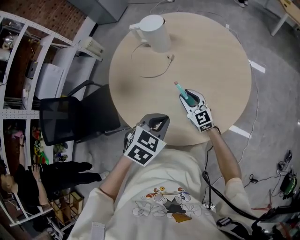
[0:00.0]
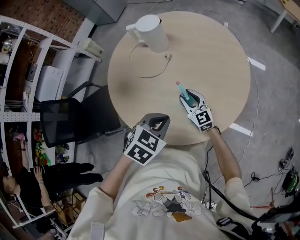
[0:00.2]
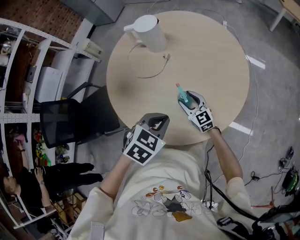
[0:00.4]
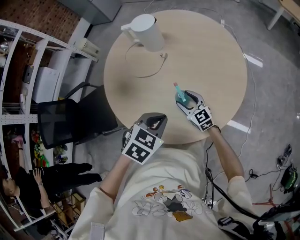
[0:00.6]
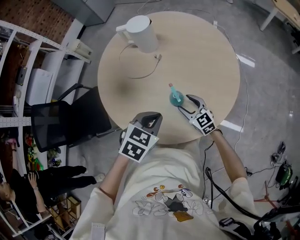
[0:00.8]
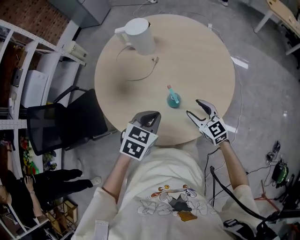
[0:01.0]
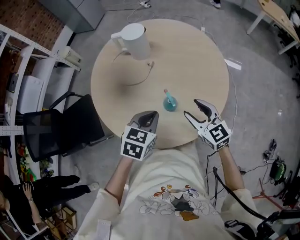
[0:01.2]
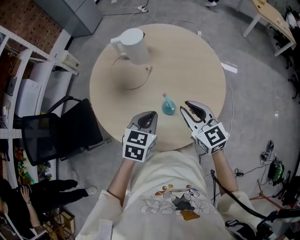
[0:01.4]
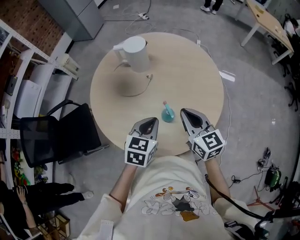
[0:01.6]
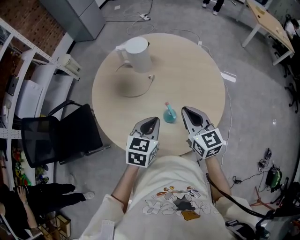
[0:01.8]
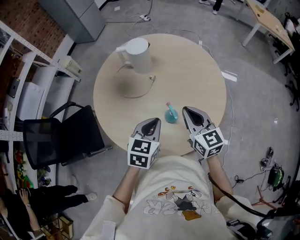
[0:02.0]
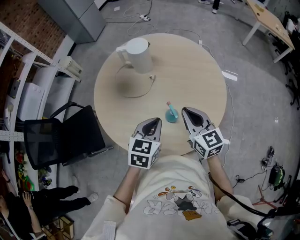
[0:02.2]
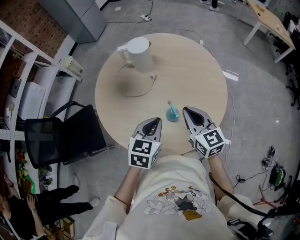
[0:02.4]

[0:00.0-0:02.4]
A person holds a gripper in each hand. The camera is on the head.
0:00.0 to 0:01.2: The right gripper goes about 15 cm upward, to the right and backward, and opens up.
0:01.2 to 0:02.4: The right gripper goes approximately 5 cm upward, and closes its fingers.

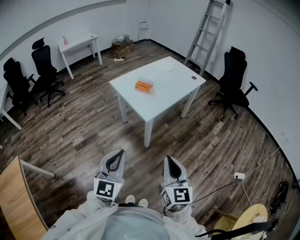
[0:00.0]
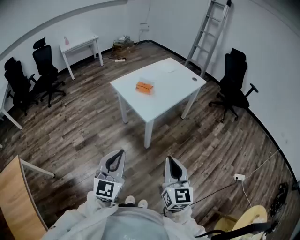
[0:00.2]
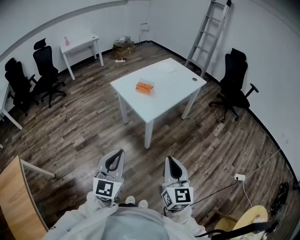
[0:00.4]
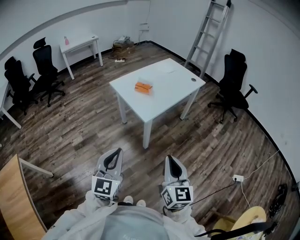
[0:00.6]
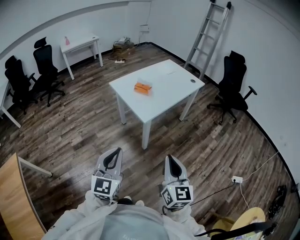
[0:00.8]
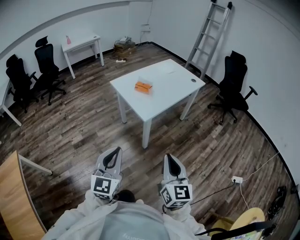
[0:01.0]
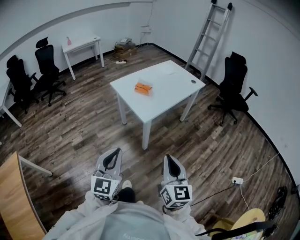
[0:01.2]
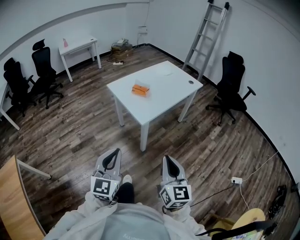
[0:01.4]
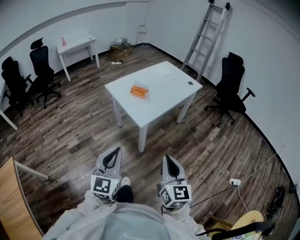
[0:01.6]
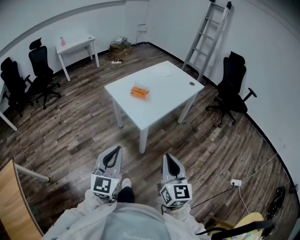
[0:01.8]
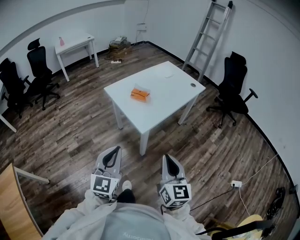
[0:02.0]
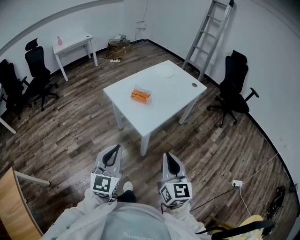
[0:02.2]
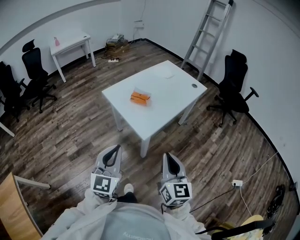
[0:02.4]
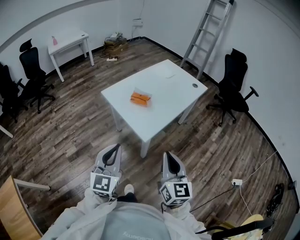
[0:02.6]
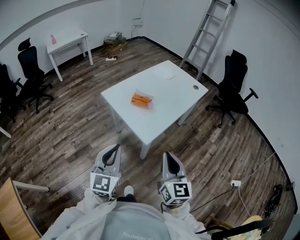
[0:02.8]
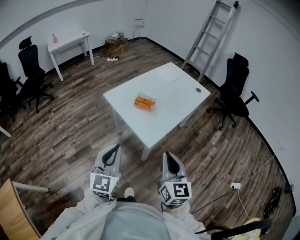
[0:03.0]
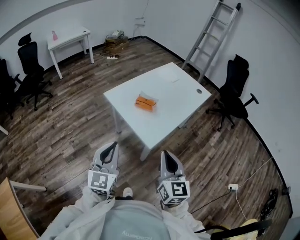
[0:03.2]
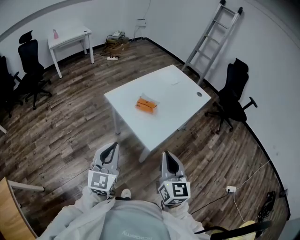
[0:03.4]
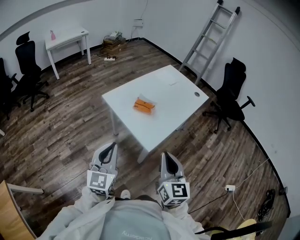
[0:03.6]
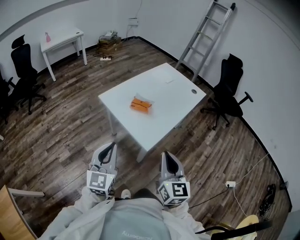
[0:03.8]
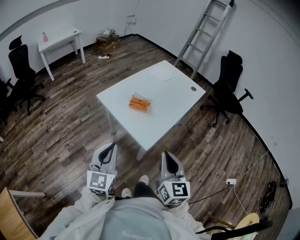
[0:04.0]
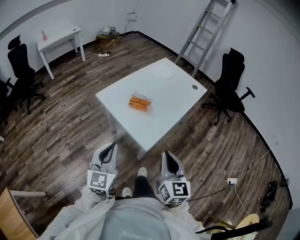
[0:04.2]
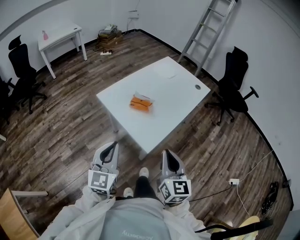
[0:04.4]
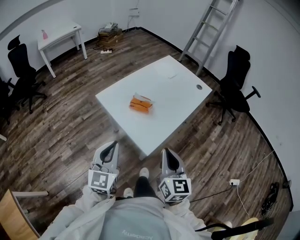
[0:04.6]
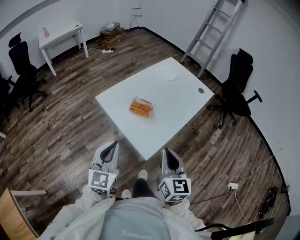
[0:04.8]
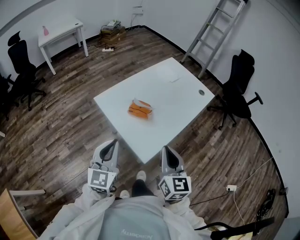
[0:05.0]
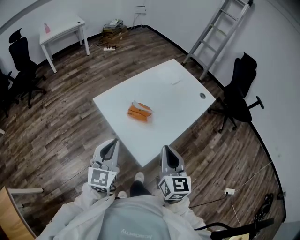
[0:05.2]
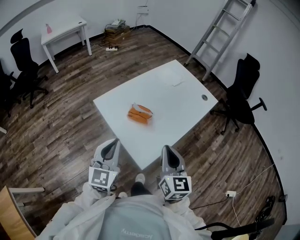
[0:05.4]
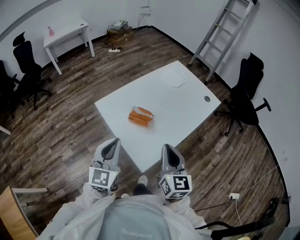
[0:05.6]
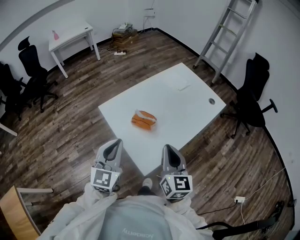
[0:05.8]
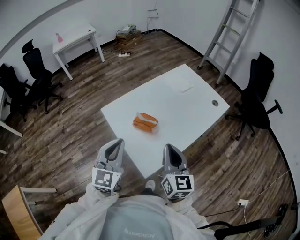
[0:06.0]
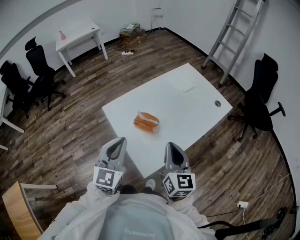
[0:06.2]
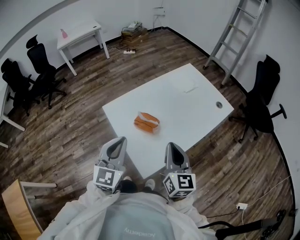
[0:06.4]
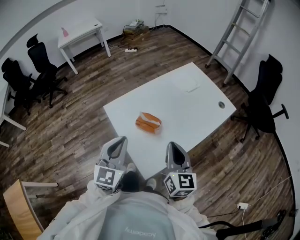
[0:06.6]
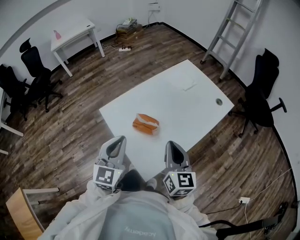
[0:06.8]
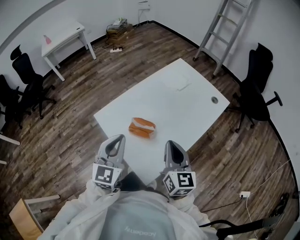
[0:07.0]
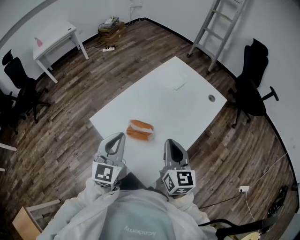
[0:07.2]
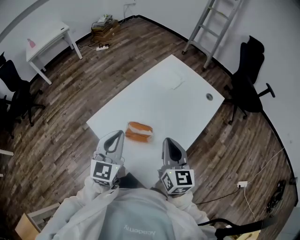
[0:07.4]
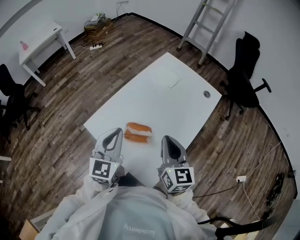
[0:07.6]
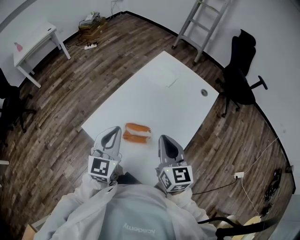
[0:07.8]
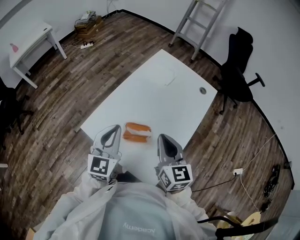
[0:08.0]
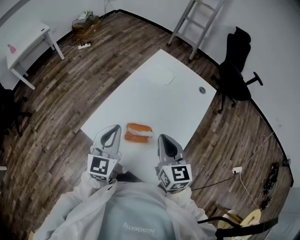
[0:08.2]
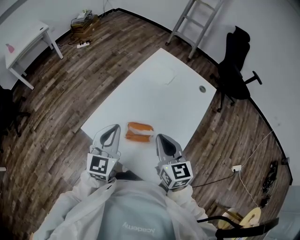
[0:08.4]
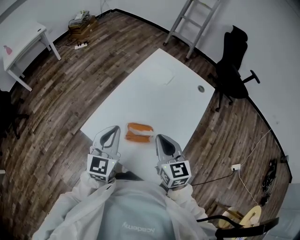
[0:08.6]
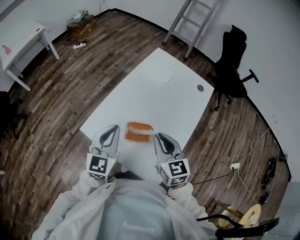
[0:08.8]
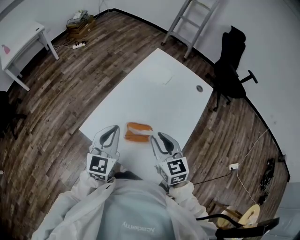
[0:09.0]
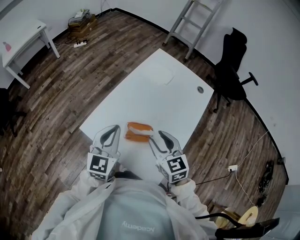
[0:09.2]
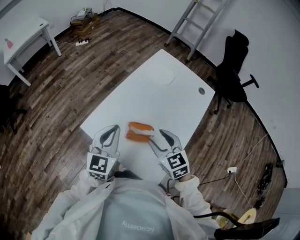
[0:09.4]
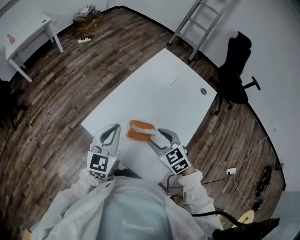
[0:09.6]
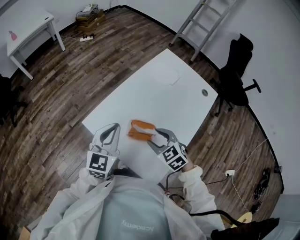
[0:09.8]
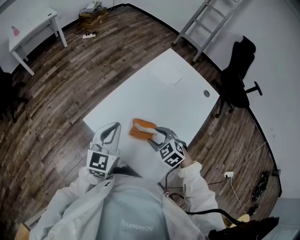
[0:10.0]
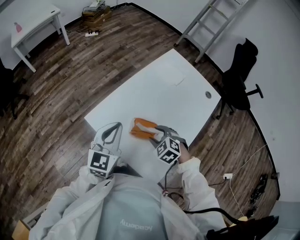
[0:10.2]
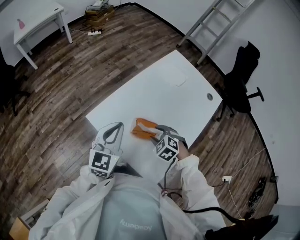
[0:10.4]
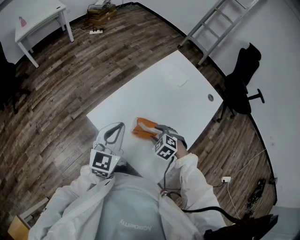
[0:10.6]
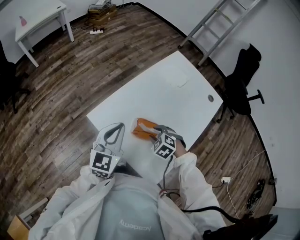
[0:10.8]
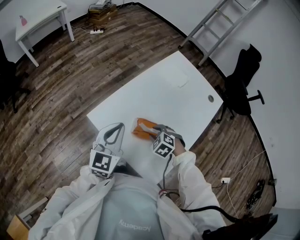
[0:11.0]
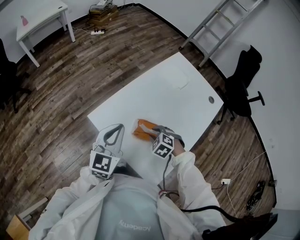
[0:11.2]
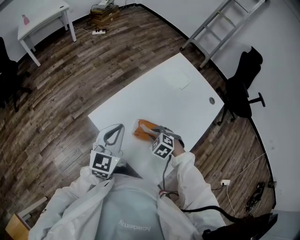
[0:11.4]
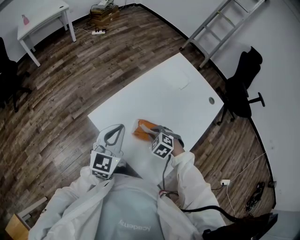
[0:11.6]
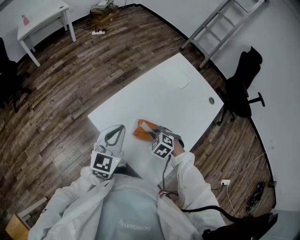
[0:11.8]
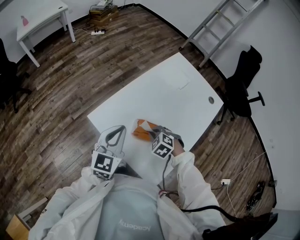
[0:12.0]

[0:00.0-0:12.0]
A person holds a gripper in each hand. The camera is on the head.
0:00.0 to 0:01.6: The grippers stay close to where they were, moving slightly.
0:01.6 to 0:03.0: Both grippers travel together forward and to the left, roughly 15 cm.
0:03.0 to 0:04.4: The grippers both shift forward by some 5 cm.
0:04.4 to 0:06.0: Both grippers travel together forward, about 15 cm.
0:06.0 to 0:07.6: The right gripper moves forward, some 10 cm, while the left gripper shifts roughly 15 cm forward.
0:07.6 to 0:09.0: The right gripper moves approximately 5 cm.
0:09.0 to 0:10.4: The right gripper heads downward, covering about 15 cm, angles its fingers downward, by about 40 degrees, and opens its fingers.
0:10.4 to 0:12.0: The right gripper closes up.

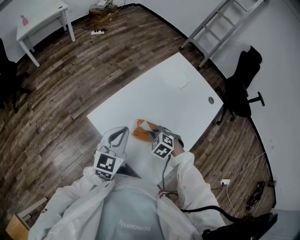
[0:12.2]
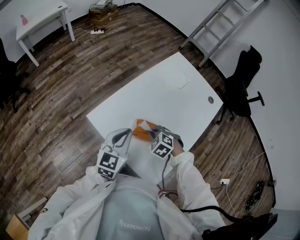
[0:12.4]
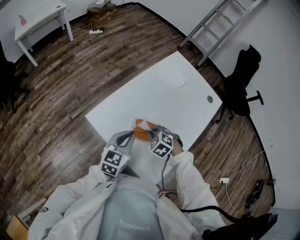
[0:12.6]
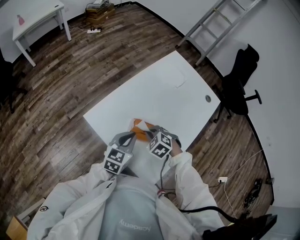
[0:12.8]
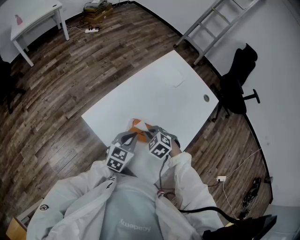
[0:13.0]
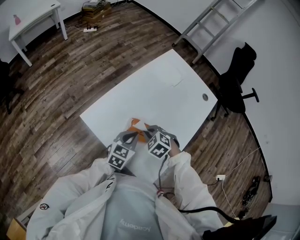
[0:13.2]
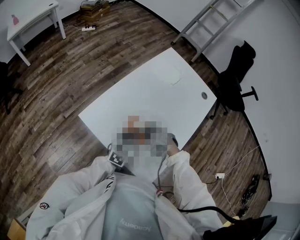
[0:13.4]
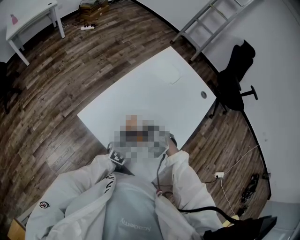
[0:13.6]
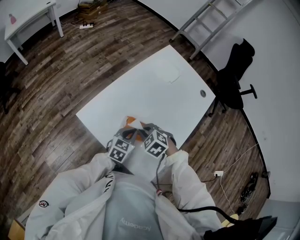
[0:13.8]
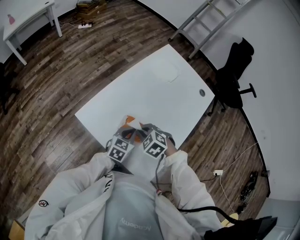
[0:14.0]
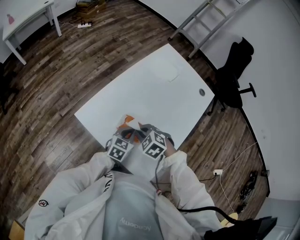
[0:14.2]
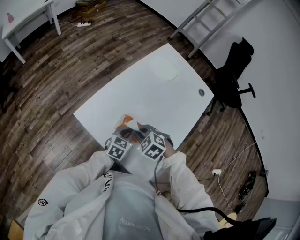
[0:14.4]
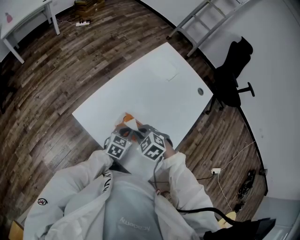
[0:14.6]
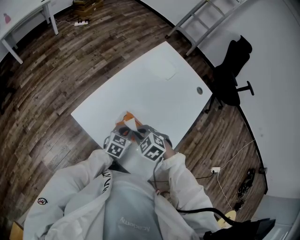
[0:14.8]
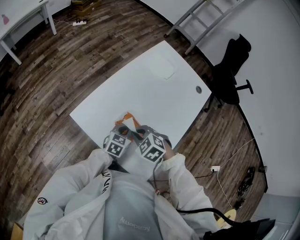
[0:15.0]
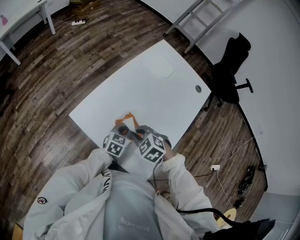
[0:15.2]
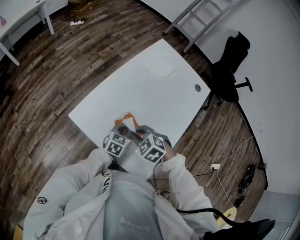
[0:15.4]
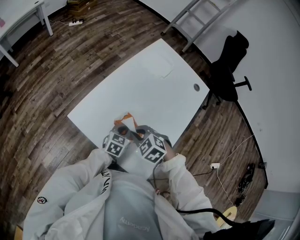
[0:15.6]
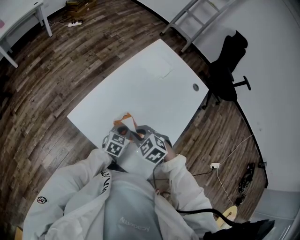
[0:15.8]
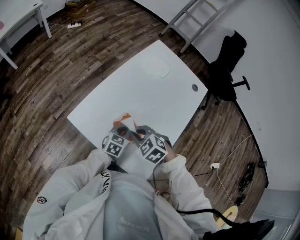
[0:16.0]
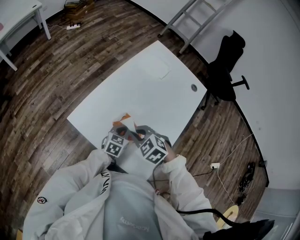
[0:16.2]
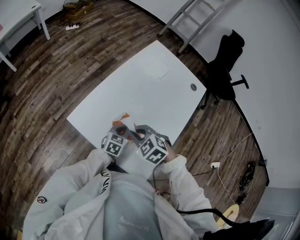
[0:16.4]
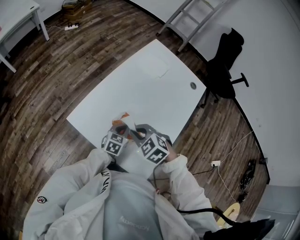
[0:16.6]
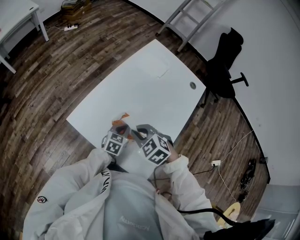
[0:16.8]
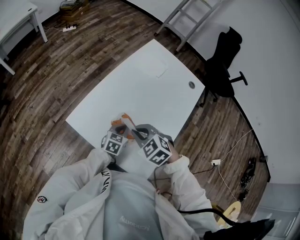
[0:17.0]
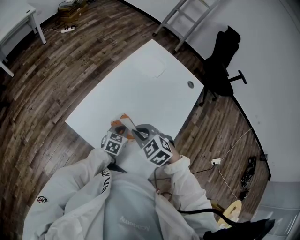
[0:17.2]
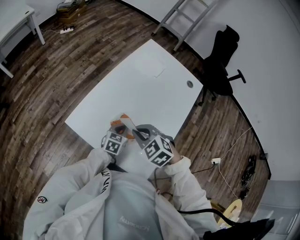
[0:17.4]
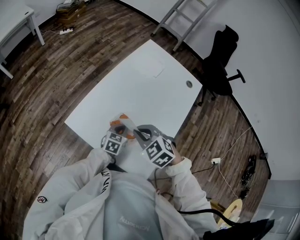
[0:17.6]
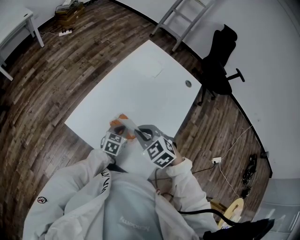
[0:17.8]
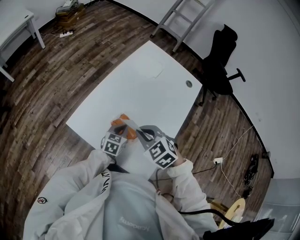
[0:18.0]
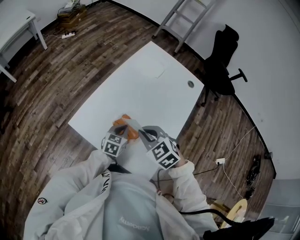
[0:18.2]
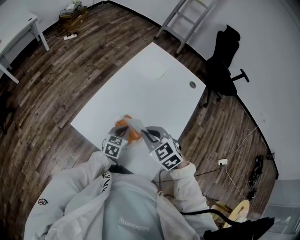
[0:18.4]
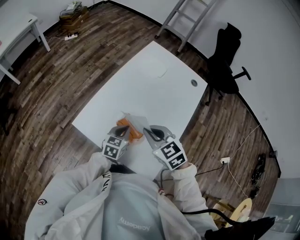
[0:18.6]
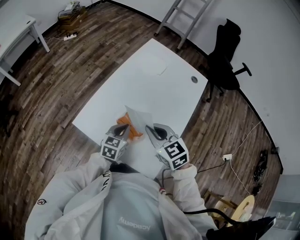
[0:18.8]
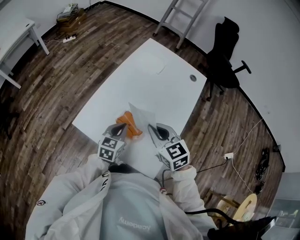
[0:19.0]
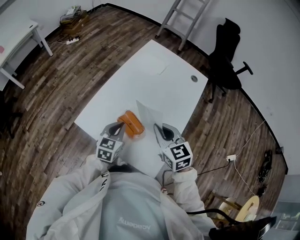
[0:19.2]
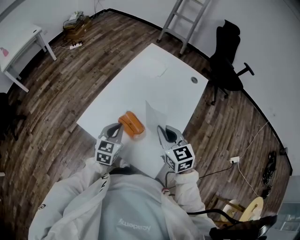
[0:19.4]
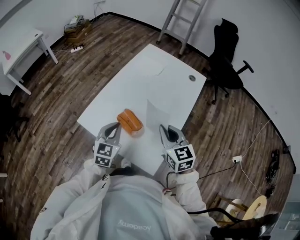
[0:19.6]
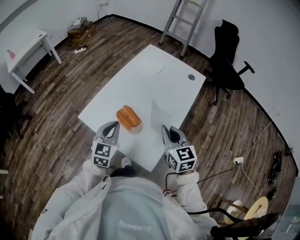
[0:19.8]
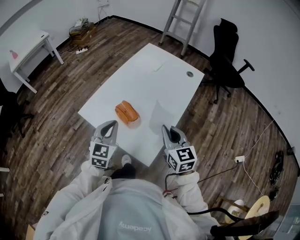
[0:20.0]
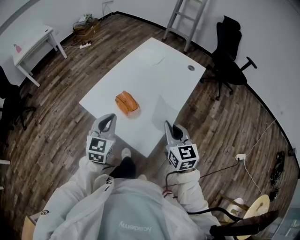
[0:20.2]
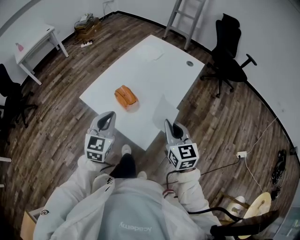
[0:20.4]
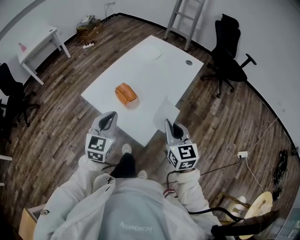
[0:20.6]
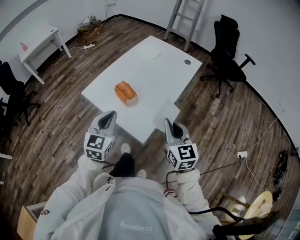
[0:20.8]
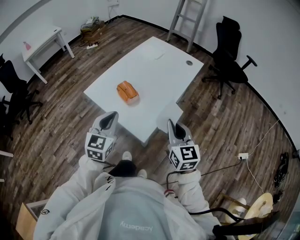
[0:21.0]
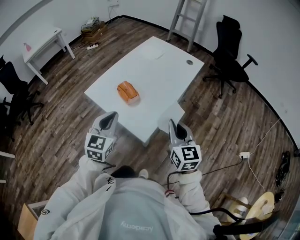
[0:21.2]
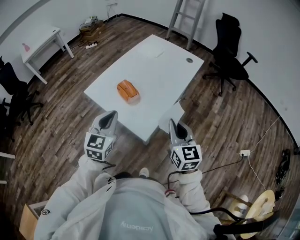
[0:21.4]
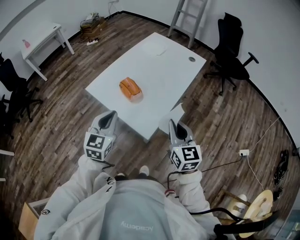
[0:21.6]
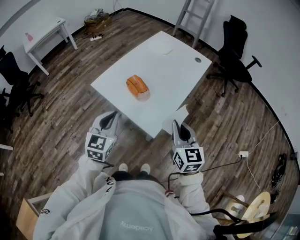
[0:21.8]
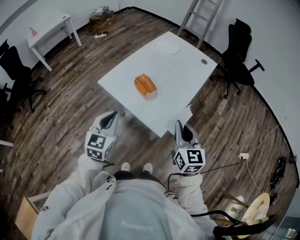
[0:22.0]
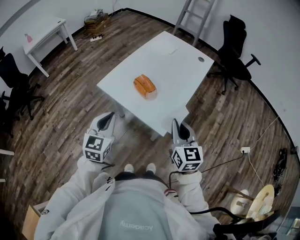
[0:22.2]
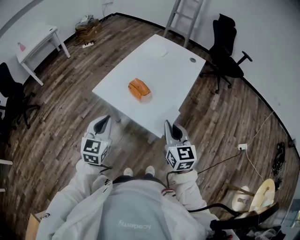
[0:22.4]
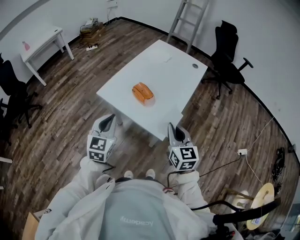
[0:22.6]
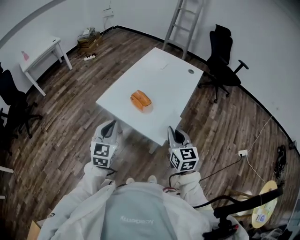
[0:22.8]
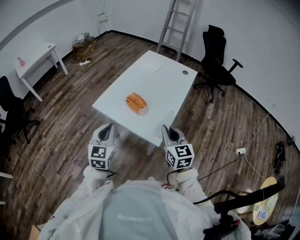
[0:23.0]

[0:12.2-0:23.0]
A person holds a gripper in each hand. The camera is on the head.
0:12.2 to 0:13.8: The left gripper moves downward and to the right, about 20 cm, and rotates some 20 degrees.
0:13.8 to 0:15.2: The grippers move only a little.
0:15.2 to 0:16.8: The grippers move only a little.
0:16.8 to 0:18.4: The right gripper ends up approximately 5 cm from where it was.
0:18.4 to 0:20.0: The right gripper travels to the right and backward by roughly 15 cm, and changes its angle by some 40 degrees, while the left gripper goes some 20 cm upward and backward, and changes its angle by roughly 30 degrees.
0:20.0 to 0:21.4: The two grippers go some 10 cm backward.
0:21.4 to 0:23.0: The grippers both shift to the left by approximately 10 cm.
